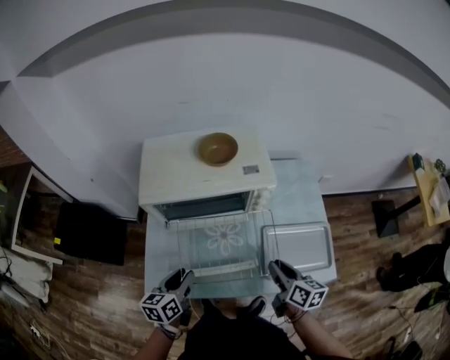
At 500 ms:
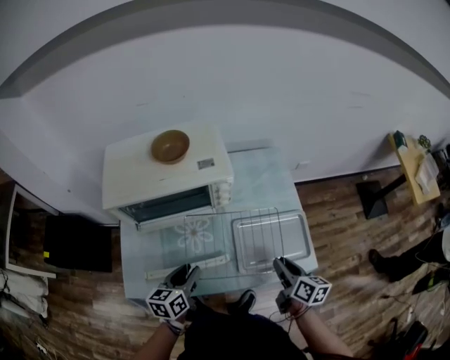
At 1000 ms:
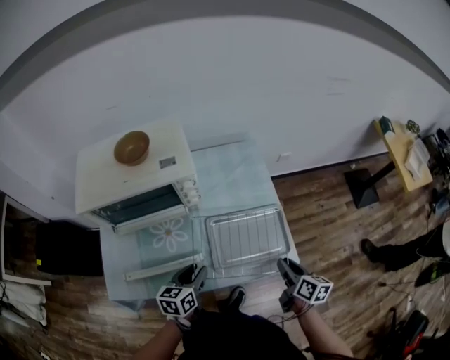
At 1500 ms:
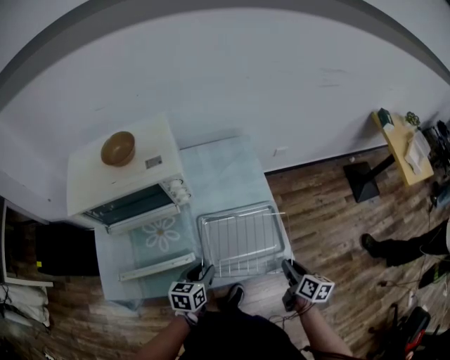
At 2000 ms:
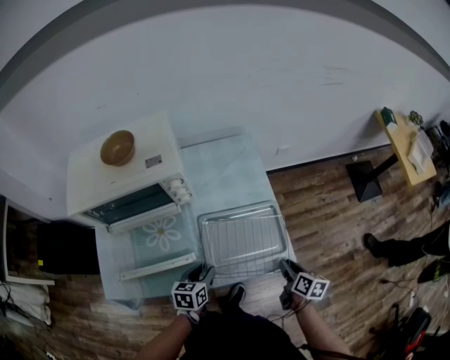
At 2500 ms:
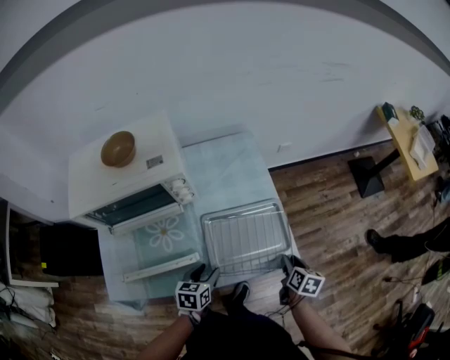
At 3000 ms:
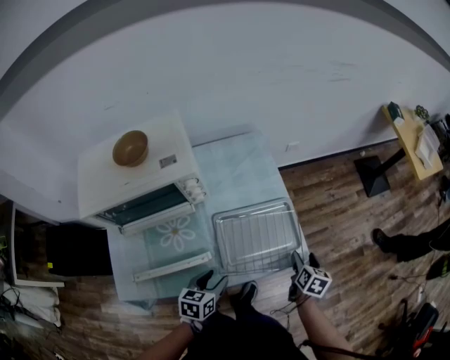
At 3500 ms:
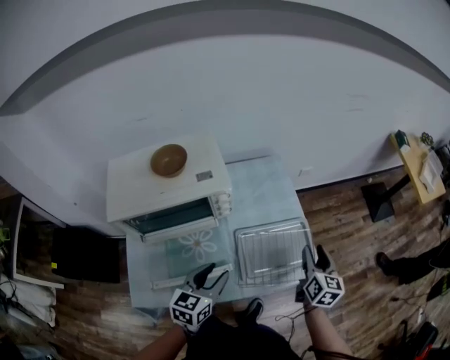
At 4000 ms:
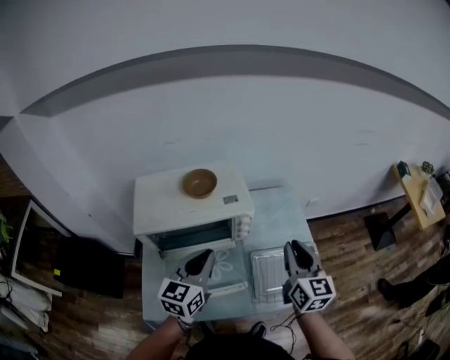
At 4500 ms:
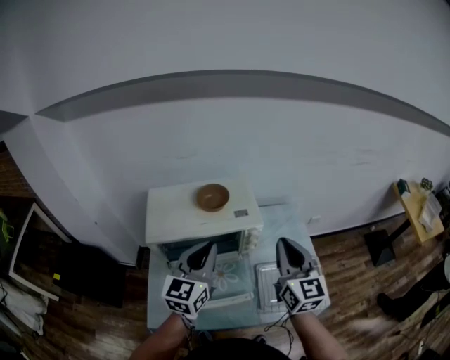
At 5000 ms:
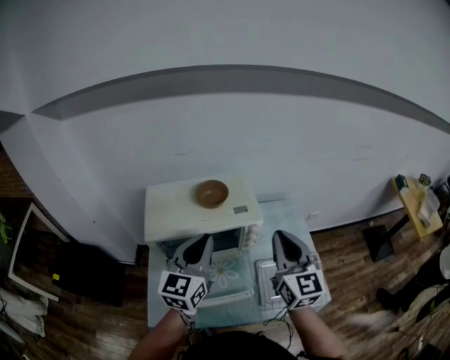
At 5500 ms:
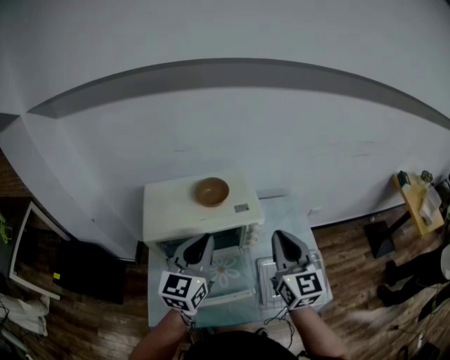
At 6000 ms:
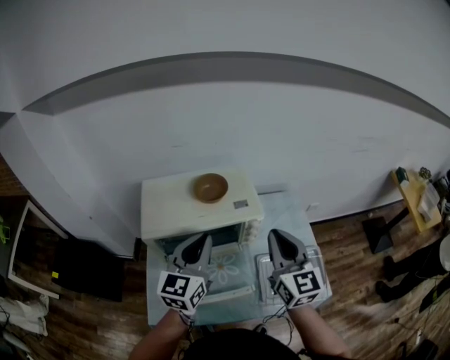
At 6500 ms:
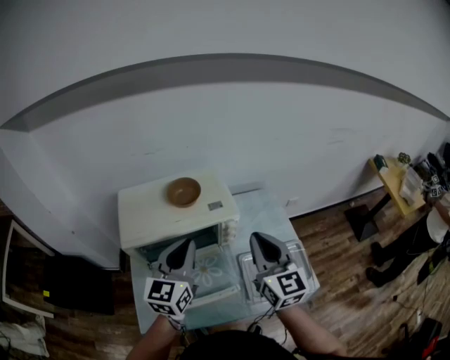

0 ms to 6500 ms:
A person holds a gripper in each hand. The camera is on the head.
0 ms to 2000 ms: The left gripper heads to the right and downward, covering roughly 35 cm, and turns by some 20 degrees; the right gripper travels to the right by some 30 cm, and rotates some 20 degrees.
2000 ms to 4500 ms: Both grippers travel together upward and to the left, roughly 50 cm. The right gripper angles its fingers upward, by about 40 degrees, and closes up; the left gripper tips its fingers upward by about 40 degrees, and closes up.
4500 ms to 6500 ms: There are only small adjustments of the grippers.

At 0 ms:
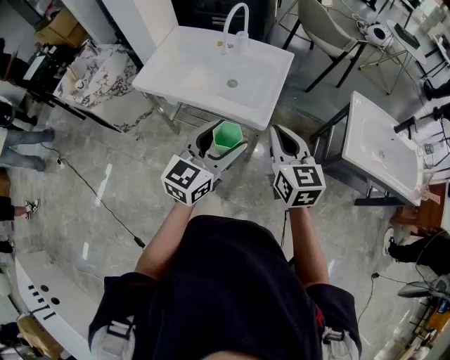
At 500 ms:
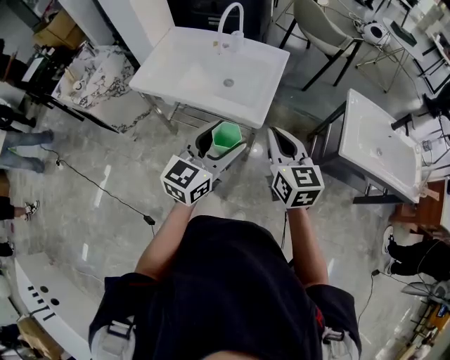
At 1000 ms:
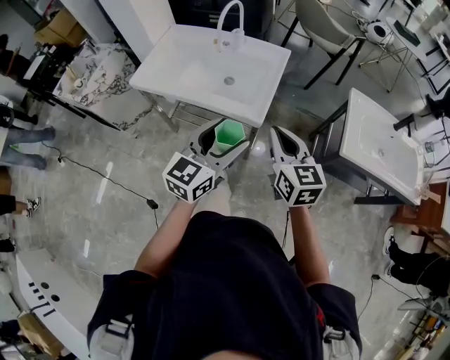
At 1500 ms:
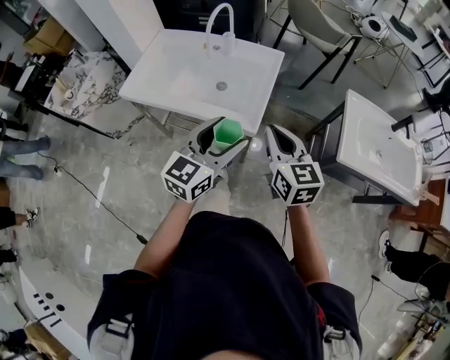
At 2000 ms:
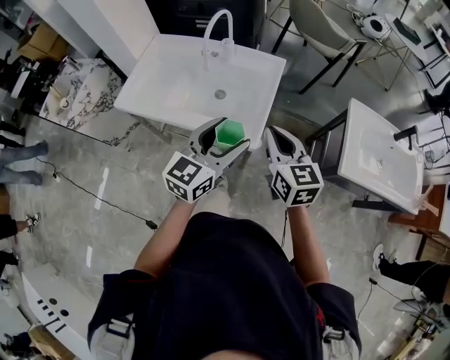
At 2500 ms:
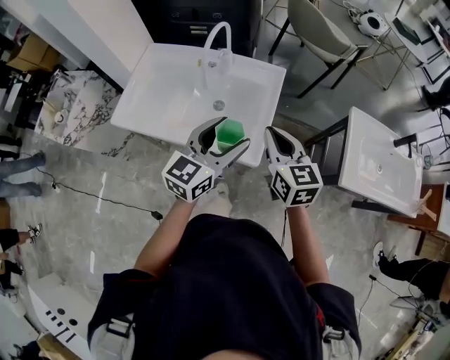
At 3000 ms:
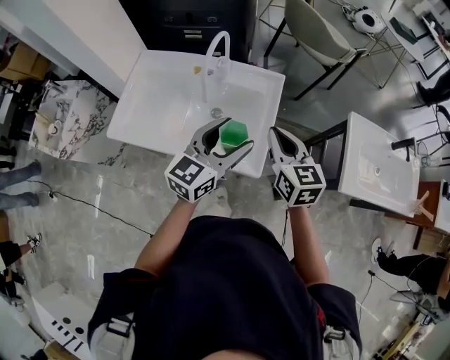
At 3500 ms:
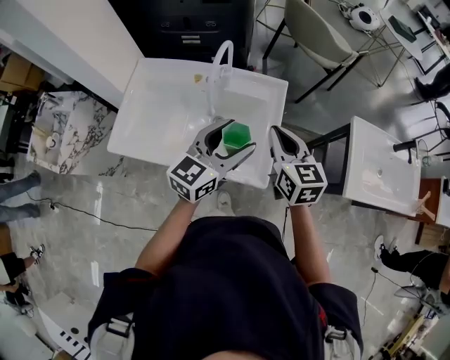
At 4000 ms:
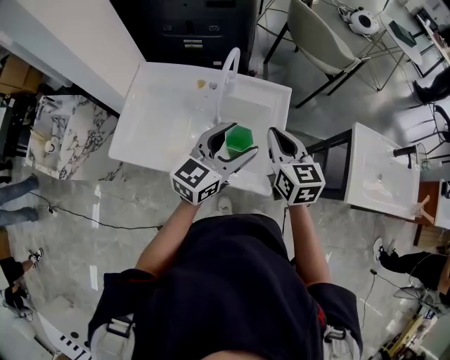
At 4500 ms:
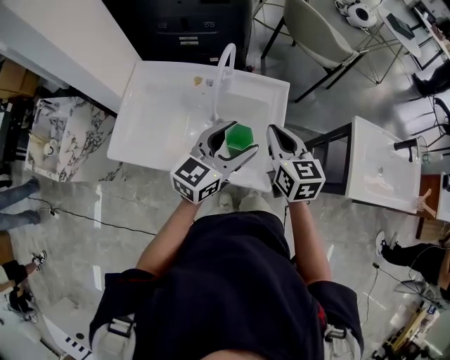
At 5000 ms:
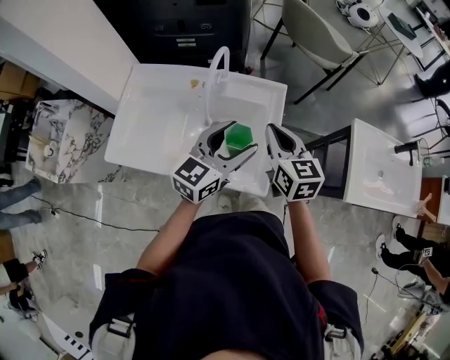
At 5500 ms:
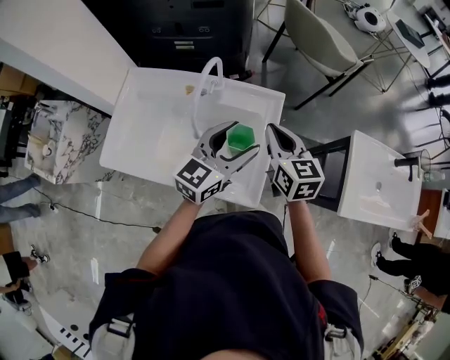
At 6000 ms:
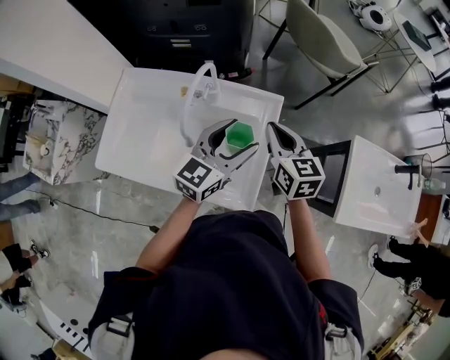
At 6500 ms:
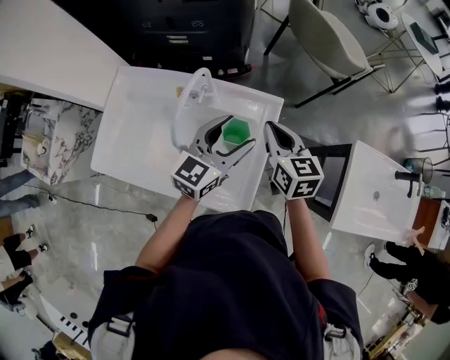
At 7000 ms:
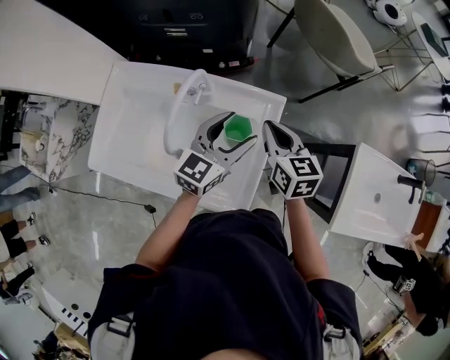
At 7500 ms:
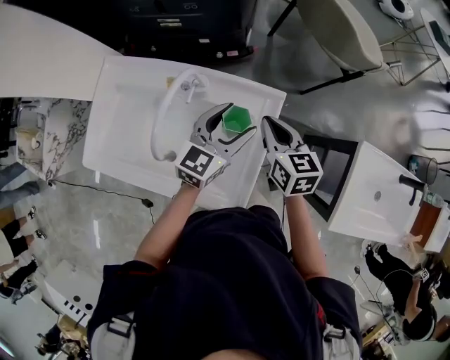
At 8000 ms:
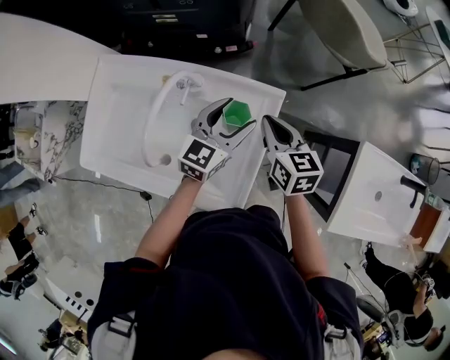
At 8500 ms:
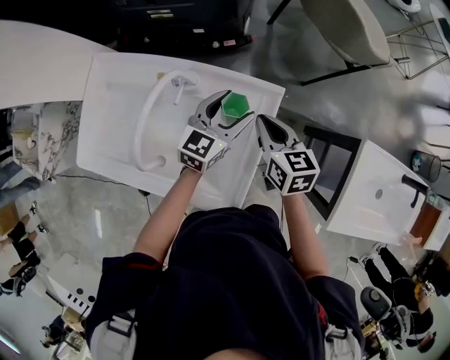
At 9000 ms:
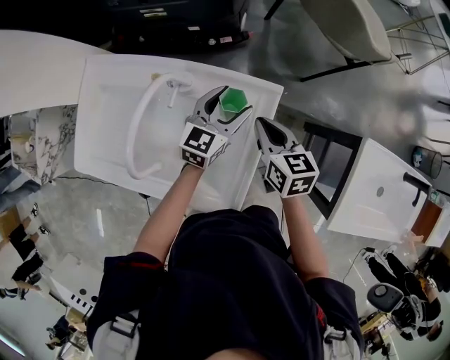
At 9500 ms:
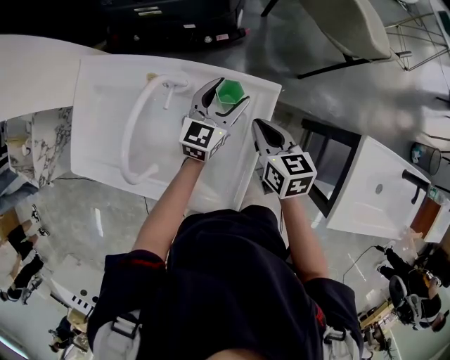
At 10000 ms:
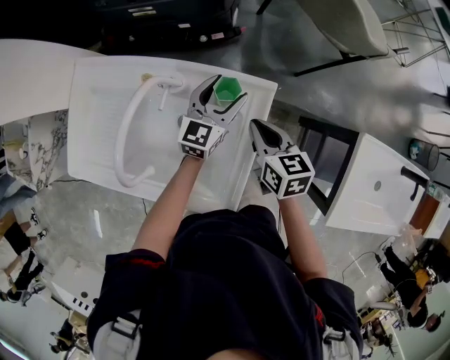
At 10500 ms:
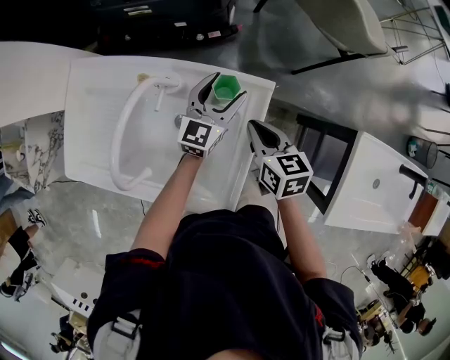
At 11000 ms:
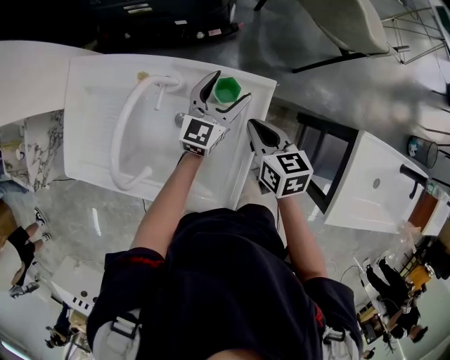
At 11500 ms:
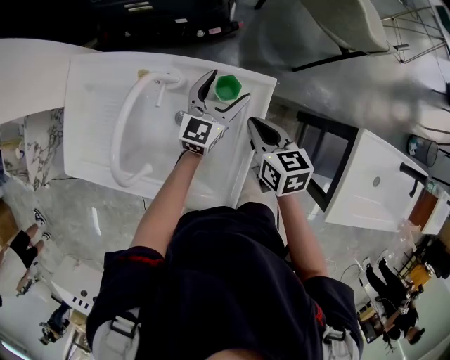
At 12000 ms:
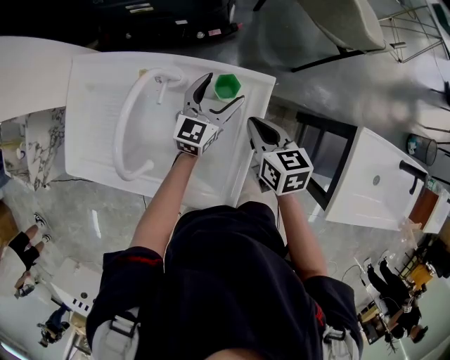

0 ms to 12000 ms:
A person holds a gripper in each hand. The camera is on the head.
0 ms to 2000 ms: Both grippers move forward, roughly 10 cm.
2000 ms to 4000 ms: The grippers both shift forward and to the left by approximately 20 cm.
4000 ms to 6000 ms: Both grippers travel together forward, roughly 10 cm.
6000 ms to 8000 ms: The right gripper goes roughly 10 cm downward and forward, while the left gripper goes about 15 cm forward and downward.
8000 ms to 10000 ms: The left gripper moves forward and downward, some 10 cm.
10000 ms to 12000 ms: The grippers make only small movements.

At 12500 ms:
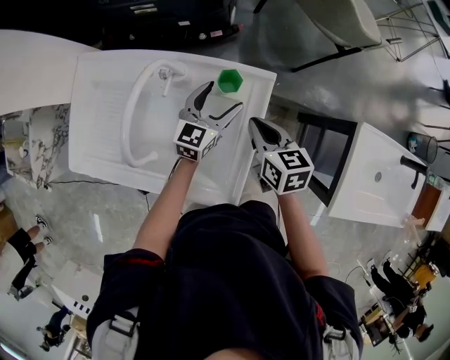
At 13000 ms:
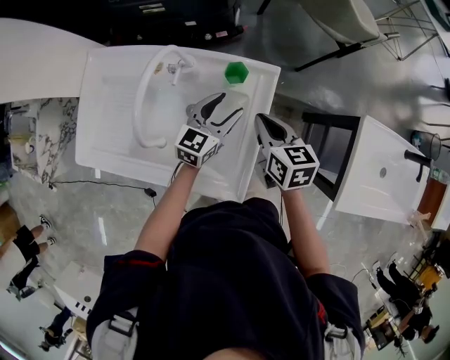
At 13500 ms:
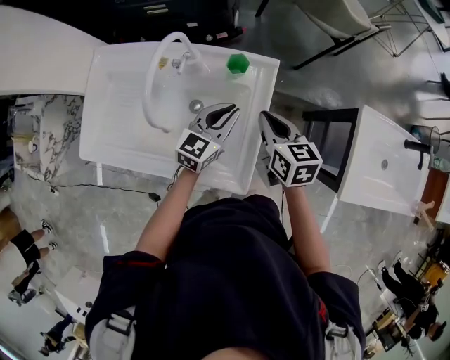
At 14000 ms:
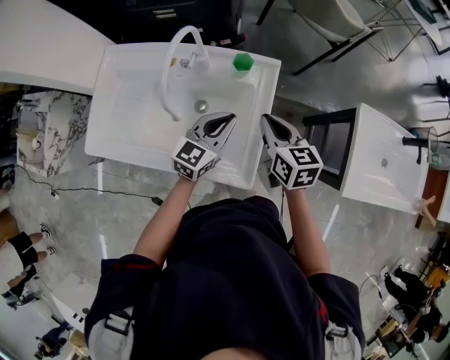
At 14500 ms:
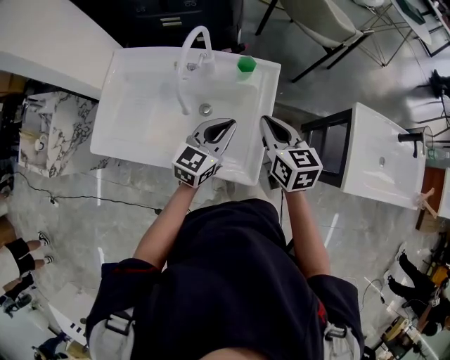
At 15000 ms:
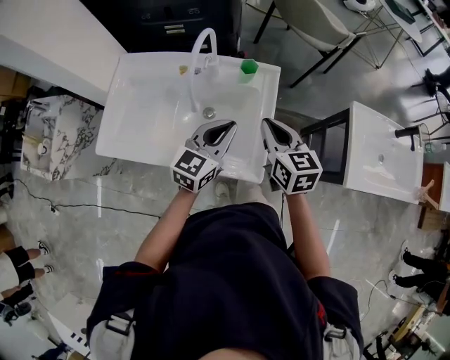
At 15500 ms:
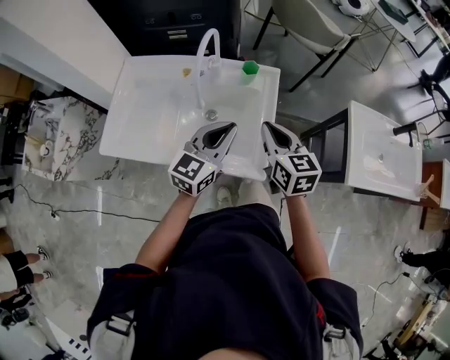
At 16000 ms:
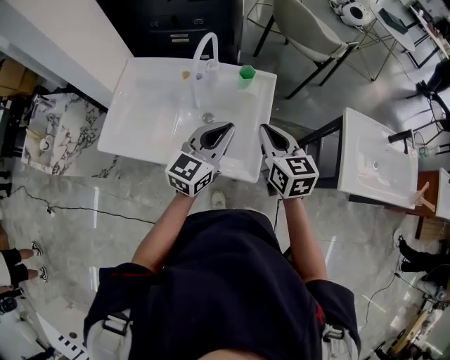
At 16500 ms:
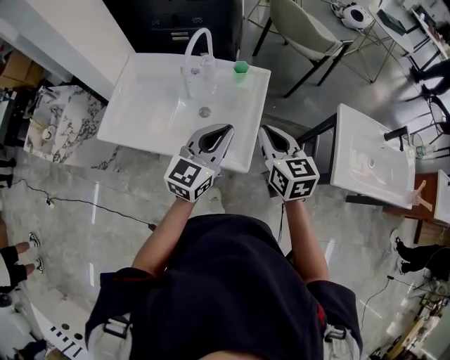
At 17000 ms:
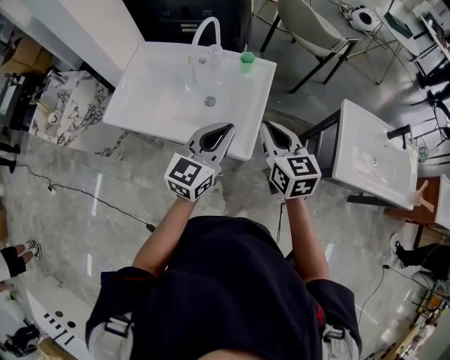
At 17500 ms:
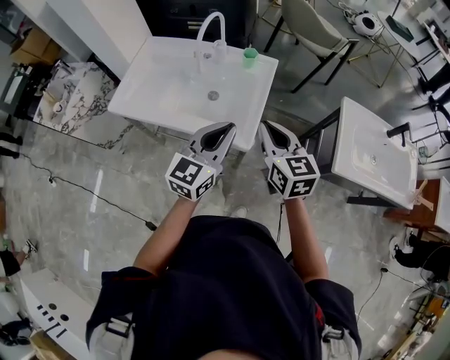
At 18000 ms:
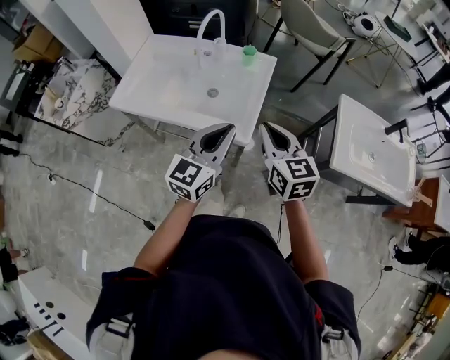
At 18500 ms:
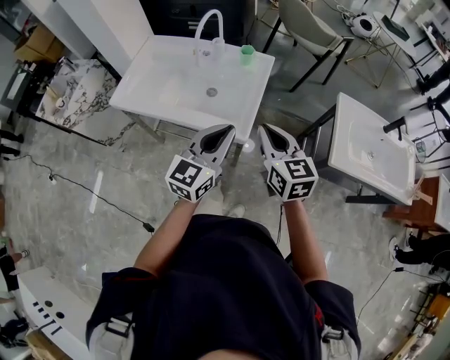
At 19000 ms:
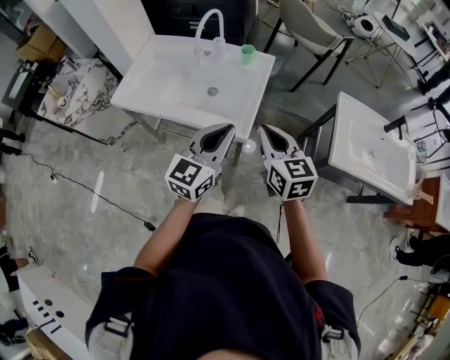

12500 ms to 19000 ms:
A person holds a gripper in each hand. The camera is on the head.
12500 ms to 14500 ms: Both grippers travel together backward and upward, about 20 cm. The left gripper closes its fingers.
14500 ms to 17000 ms: The grippers both shift backward and upward by approximately 15 cm.
17000 ms to 19000 ms: Both grippers travel together backward, about 10 cm.

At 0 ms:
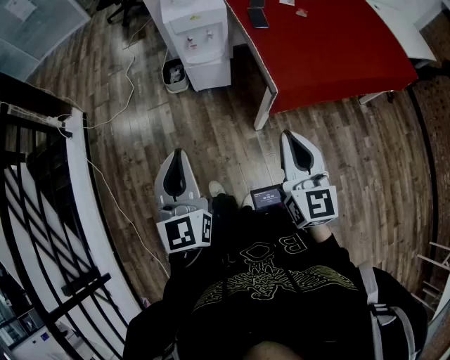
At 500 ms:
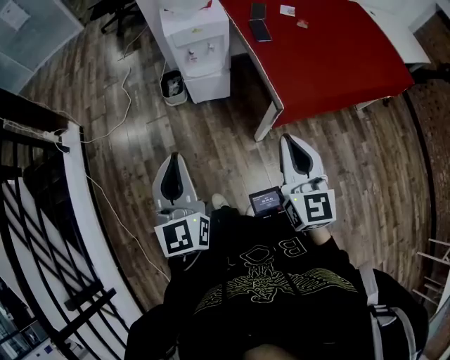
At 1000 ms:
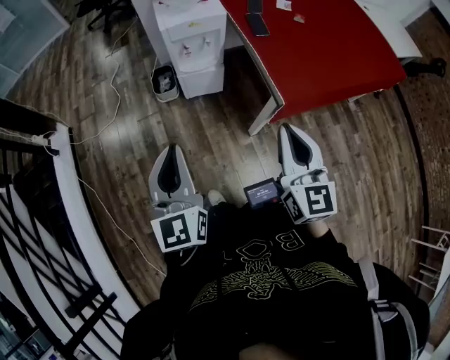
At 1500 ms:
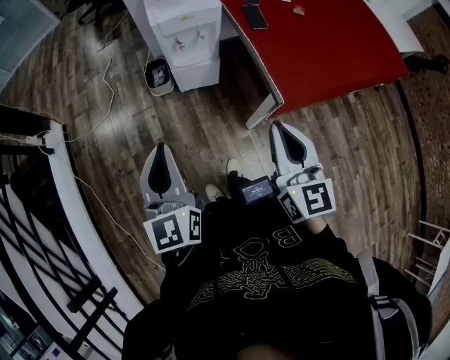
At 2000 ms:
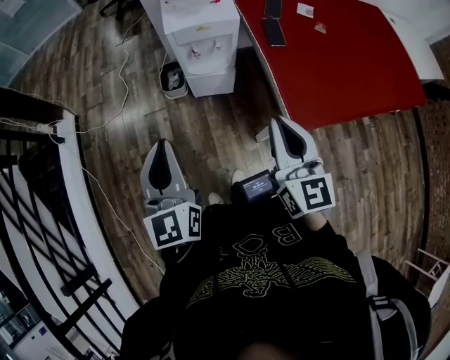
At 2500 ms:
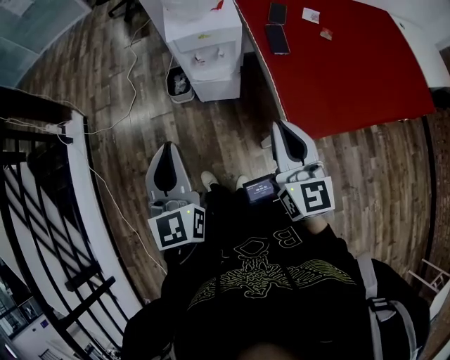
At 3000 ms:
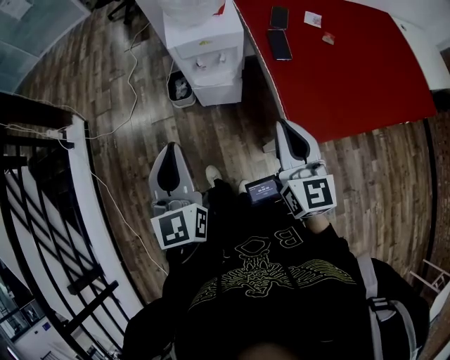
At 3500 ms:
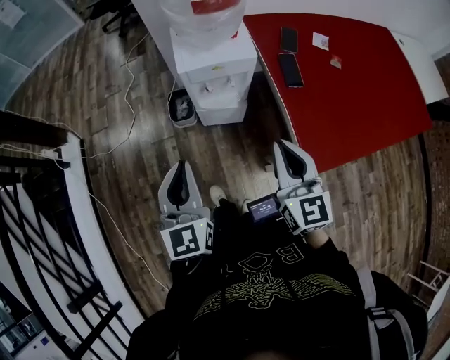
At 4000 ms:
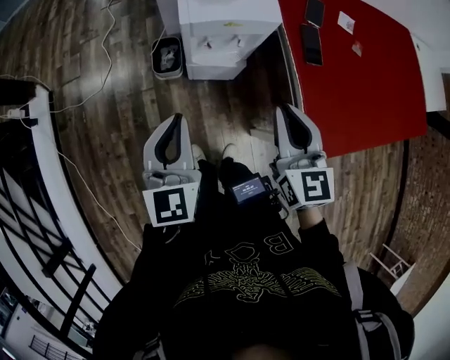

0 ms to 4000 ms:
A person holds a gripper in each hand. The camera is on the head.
0 ms to 2000 ms: The grippers both shift forward by about 20 cm.
2000 ms to 4000 ms: The left gripper is displaced forward and downward by about 20 cm; the right gripper travels forward by roughly 20 cm.
